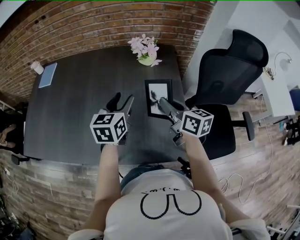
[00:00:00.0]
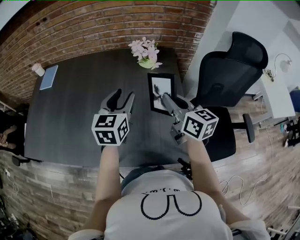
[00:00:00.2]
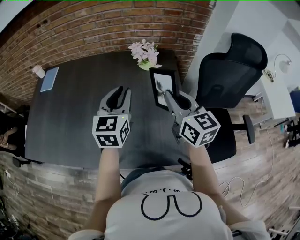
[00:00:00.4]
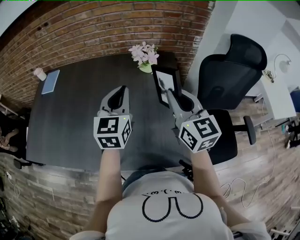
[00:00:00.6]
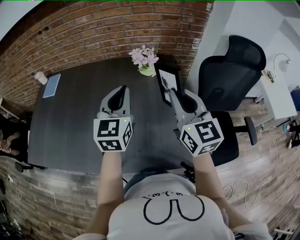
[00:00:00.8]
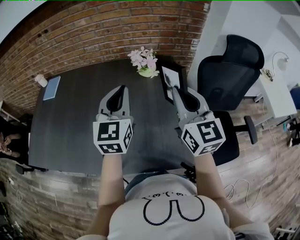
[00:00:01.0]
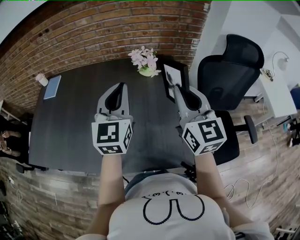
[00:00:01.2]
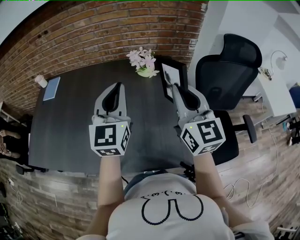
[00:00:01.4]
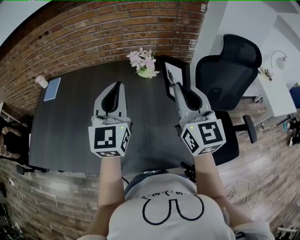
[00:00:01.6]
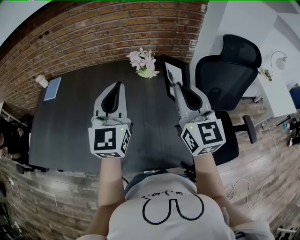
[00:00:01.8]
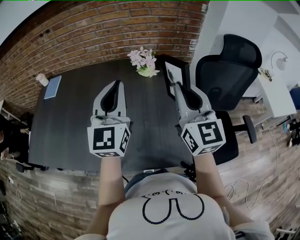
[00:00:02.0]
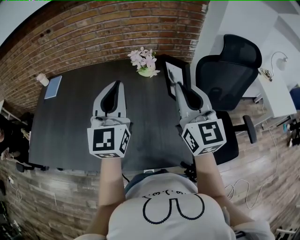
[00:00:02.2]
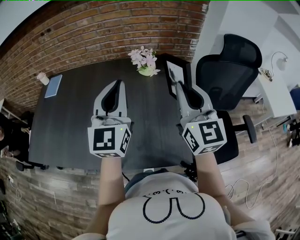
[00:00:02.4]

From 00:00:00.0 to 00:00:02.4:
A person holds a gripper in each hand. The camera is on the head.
From 00:00:00.0 to 00:00:01.2: The grippers both shift upward by roughly 15 cm. The left gripper swivels some 30 degrees, and closes up. The right gripper rotates some 40 degrees.
From 00:00:01.2 to 00:00:02.4: The left gripper changes place by roughly 5 cm.

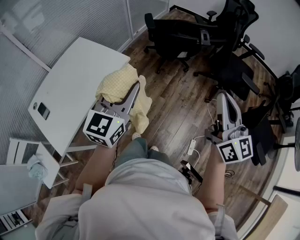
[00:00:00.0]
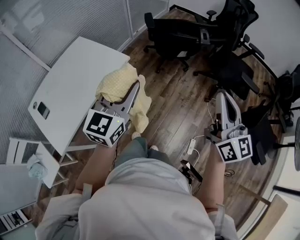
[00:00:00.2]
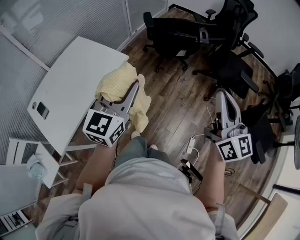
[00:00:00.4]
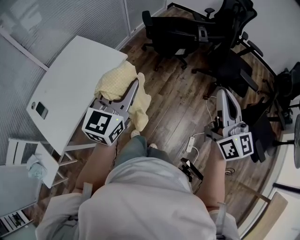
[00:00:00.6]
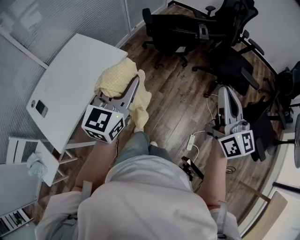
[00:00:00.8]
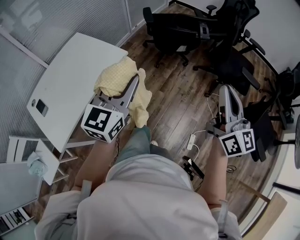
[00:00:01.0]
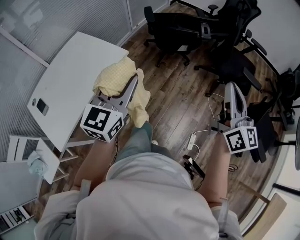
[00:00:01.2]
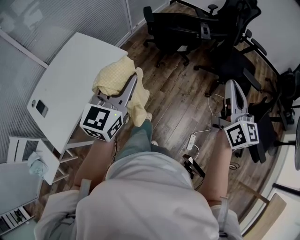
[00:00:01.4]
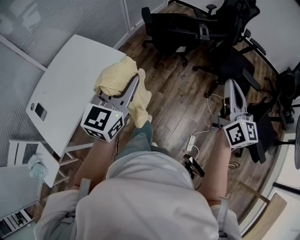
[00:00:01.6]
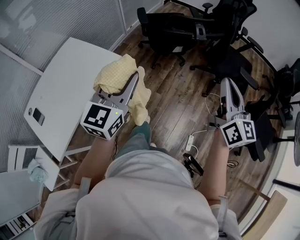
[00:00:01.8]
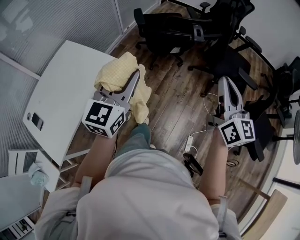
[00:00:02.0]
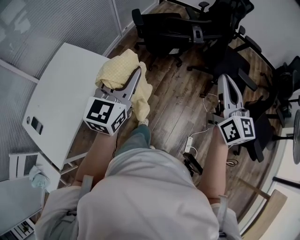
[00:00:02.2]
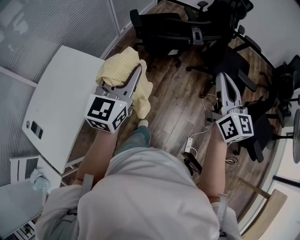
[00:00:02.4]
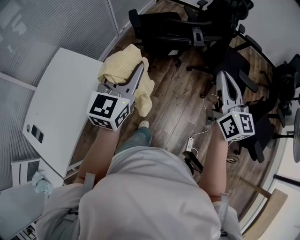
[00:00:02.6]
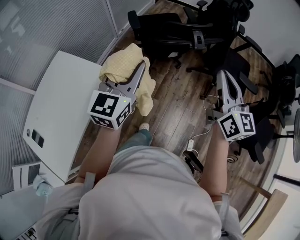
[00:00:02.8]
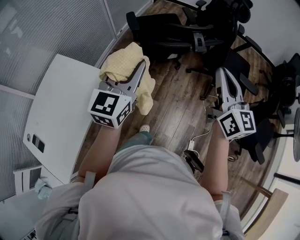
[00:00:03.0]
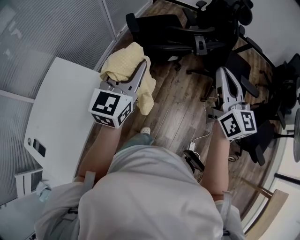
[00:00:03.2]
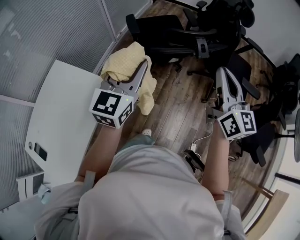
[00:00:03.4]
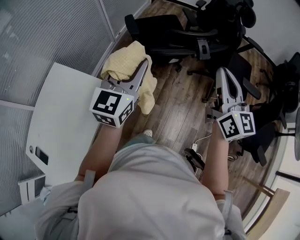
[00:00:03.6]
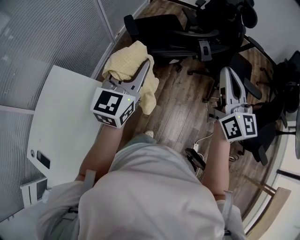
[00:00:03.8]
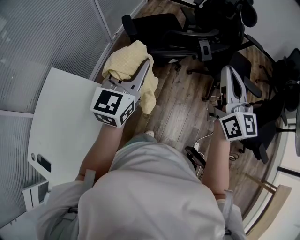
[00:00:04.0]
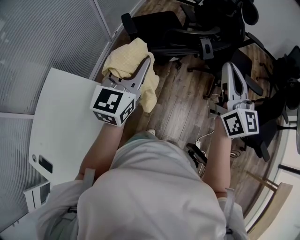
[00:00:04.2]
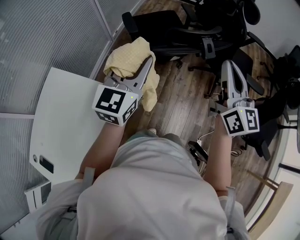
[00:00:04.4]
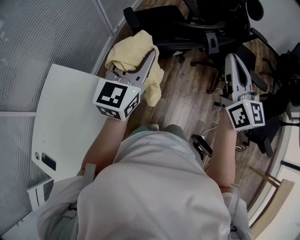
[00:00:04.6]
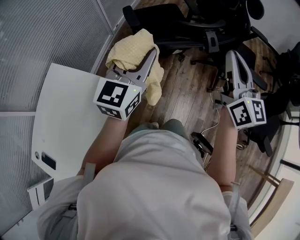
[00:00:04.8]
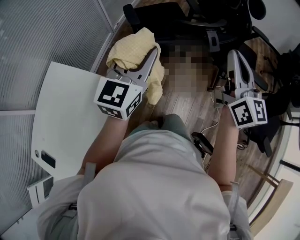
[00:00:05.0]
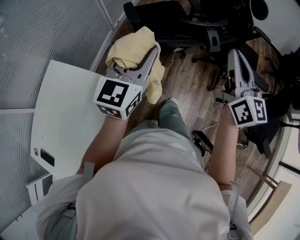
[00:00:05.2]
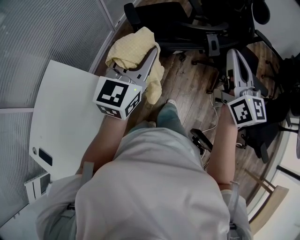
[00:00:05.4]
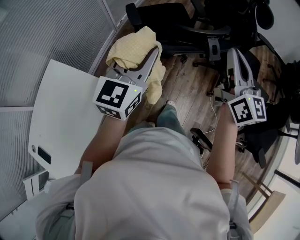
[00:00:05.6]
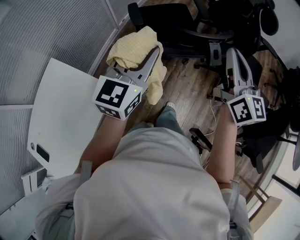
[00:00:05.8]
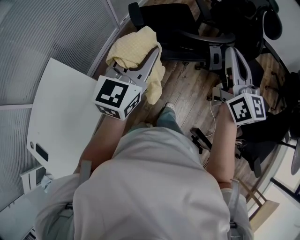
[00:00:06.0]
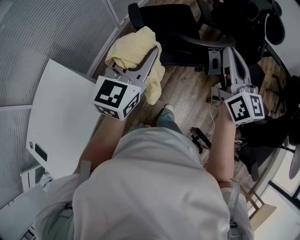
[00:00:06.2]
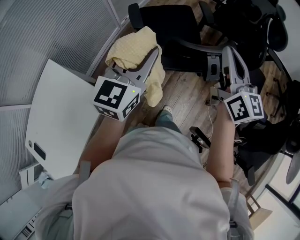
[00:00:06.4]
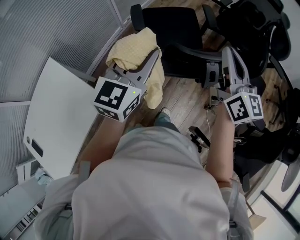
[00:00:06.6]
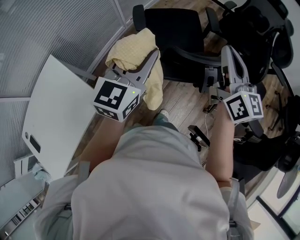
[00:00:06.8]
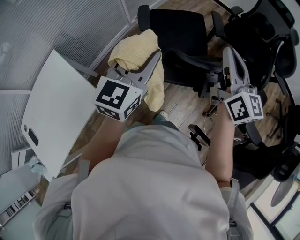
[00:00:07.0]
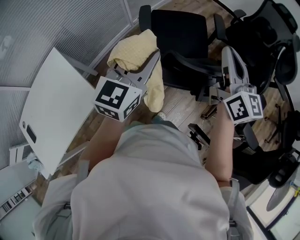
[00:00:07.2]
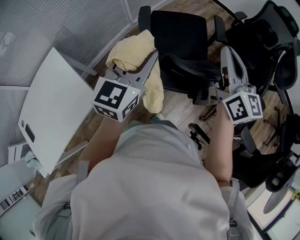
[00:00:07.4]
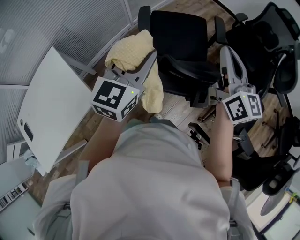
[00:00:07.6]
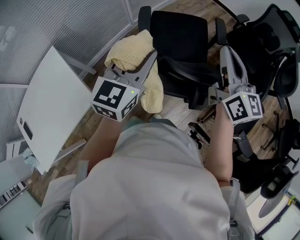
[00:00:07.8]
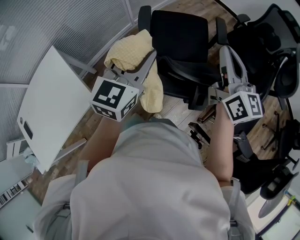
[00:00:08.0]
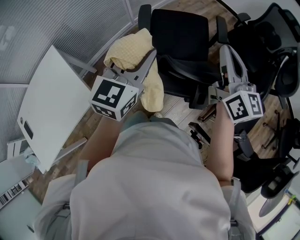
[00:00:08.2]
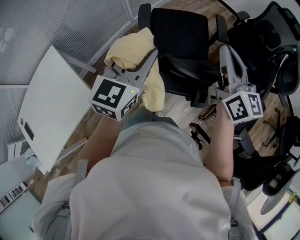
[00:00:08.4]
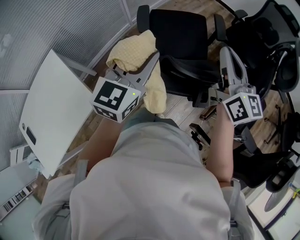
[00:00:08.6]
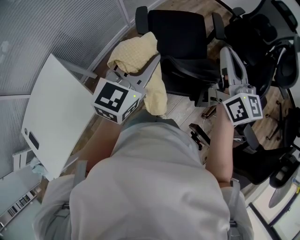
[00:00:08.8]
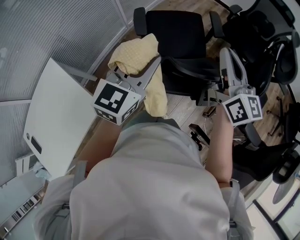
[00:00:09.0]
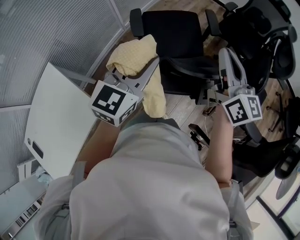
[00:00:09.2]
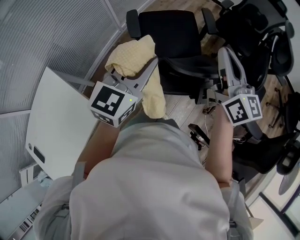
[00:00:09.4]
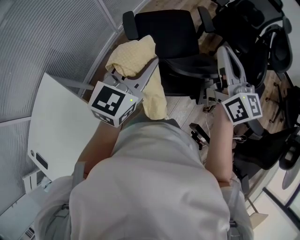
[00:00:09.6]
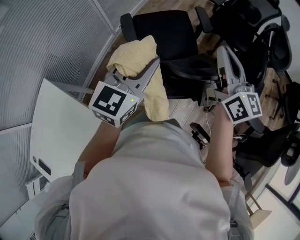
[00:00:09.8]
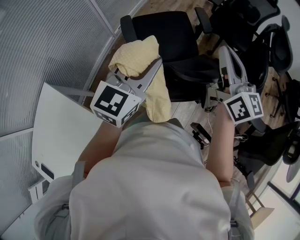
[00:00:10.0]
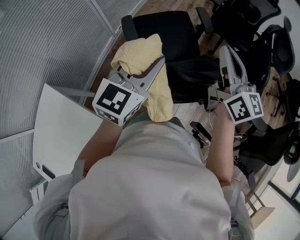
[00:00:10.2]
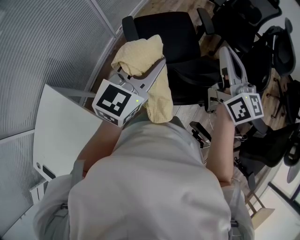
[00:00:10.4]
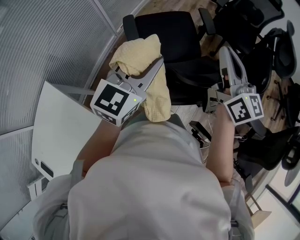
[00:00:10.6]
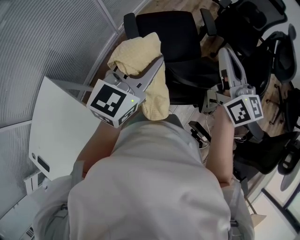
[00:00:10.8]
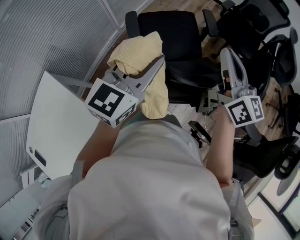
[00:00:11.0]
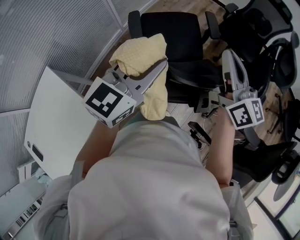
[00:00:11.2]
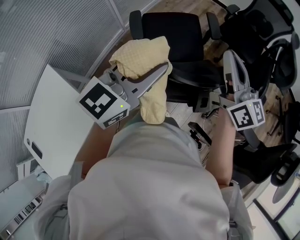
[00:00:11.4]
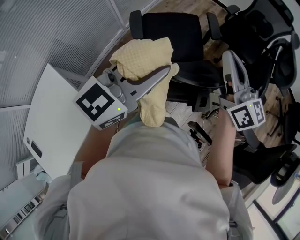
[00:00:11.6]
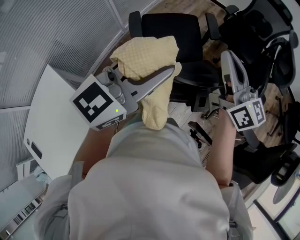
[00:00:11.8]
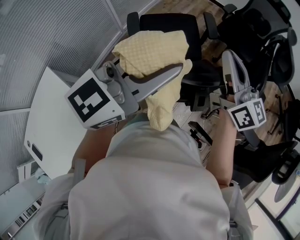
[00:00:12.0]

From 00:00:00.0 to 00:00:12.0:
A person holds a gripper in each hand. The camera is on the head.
From 00:00:00.0 to 00:00:01.6: The right gripper moves forward and to the right, roughly 10 cm.
From 00:00:01.6 to 00:00:03.0: Both grippers move forward, some 20 cm.
From 00:00:03.0 to 00:00:04.4: The right gripper is displaced forward and to the left by approximately 10 cm. Meanwhile the left gripper travels forward by approximately 10 cm.
From 00:00:04.4 to 00:00:06.0: The grippers both shift forward by approximately 10 cm.
From 00:00:06.0 to 00:00:07.6: The grippers both shift forward by some 15 cm.
From 00:00:07.6 to 00:00:09.0: The grippers make only small movements.
From 00:00:09.0 to 00:00:10.4: The grippers stay close to where they were, moving slightly.
From 00:00:10.4 to 00:00:12.0: The left gripper heads upward and to the right, covering roughly 15 cm.

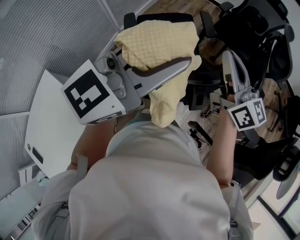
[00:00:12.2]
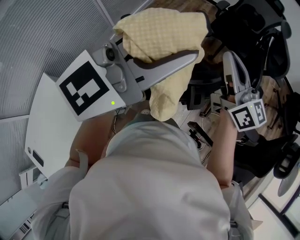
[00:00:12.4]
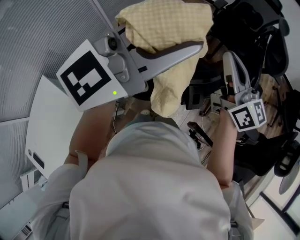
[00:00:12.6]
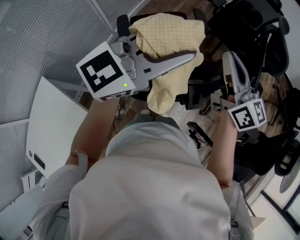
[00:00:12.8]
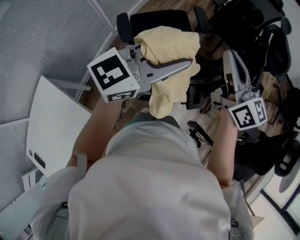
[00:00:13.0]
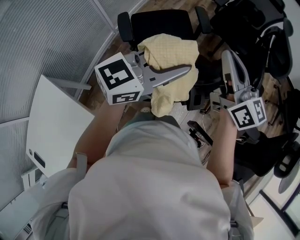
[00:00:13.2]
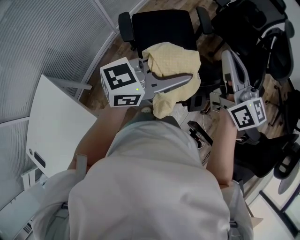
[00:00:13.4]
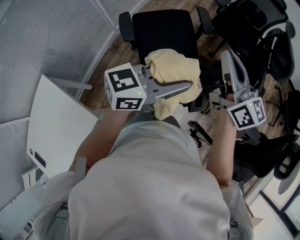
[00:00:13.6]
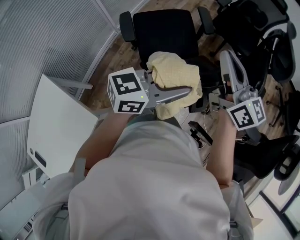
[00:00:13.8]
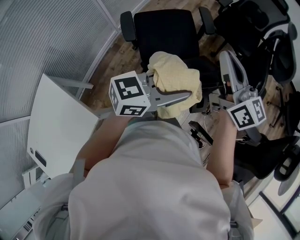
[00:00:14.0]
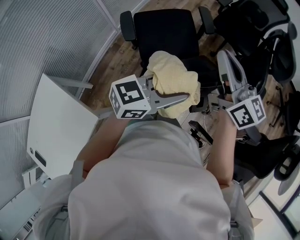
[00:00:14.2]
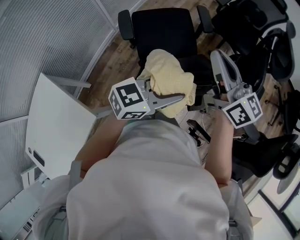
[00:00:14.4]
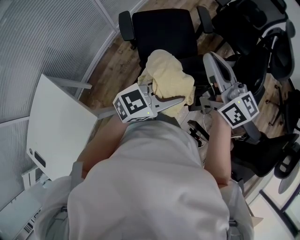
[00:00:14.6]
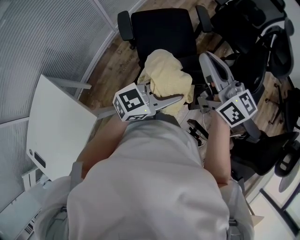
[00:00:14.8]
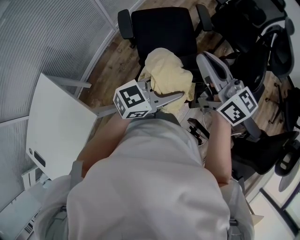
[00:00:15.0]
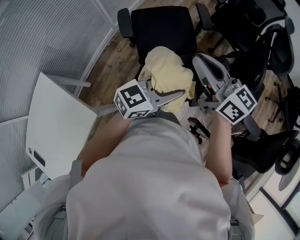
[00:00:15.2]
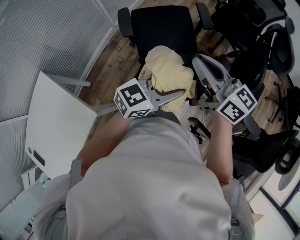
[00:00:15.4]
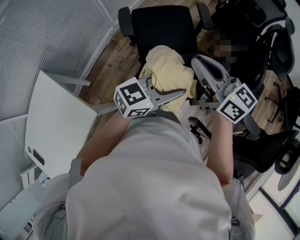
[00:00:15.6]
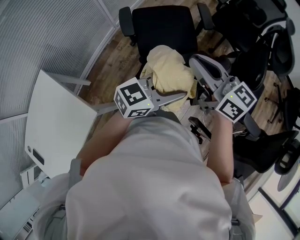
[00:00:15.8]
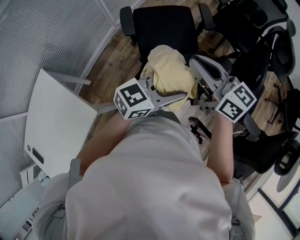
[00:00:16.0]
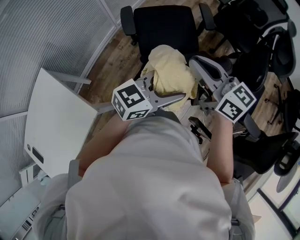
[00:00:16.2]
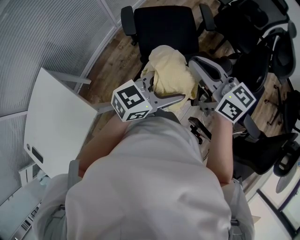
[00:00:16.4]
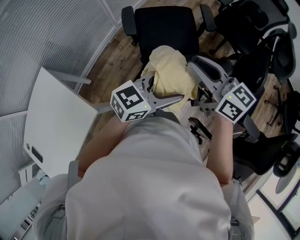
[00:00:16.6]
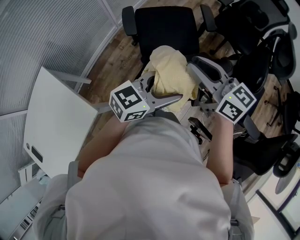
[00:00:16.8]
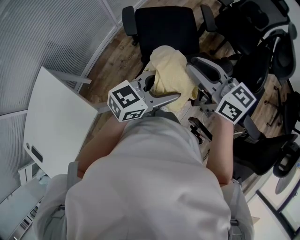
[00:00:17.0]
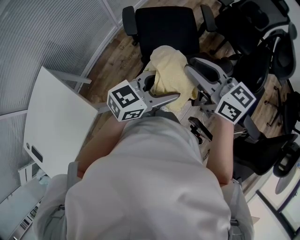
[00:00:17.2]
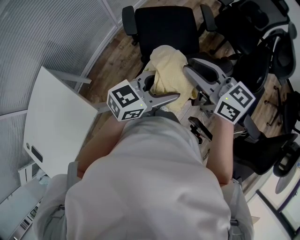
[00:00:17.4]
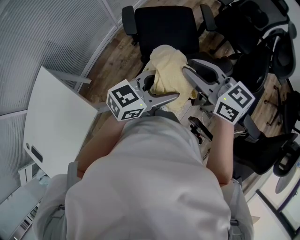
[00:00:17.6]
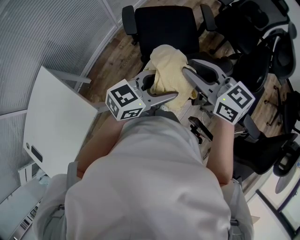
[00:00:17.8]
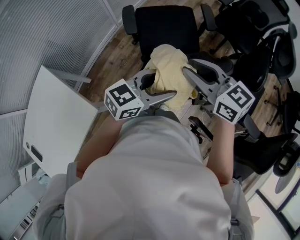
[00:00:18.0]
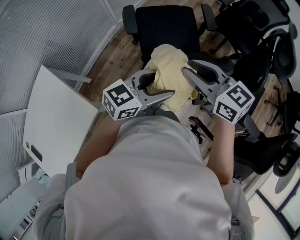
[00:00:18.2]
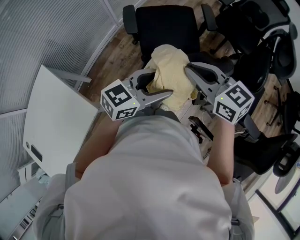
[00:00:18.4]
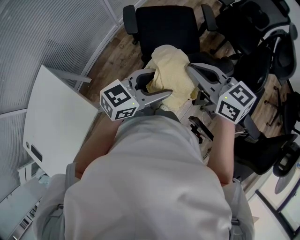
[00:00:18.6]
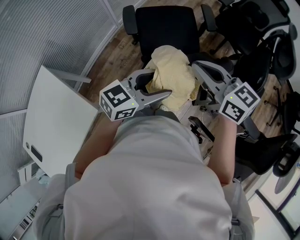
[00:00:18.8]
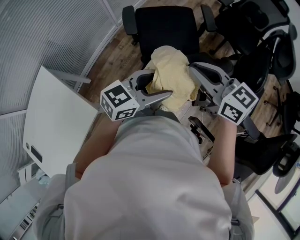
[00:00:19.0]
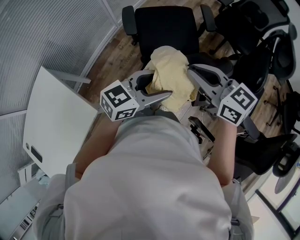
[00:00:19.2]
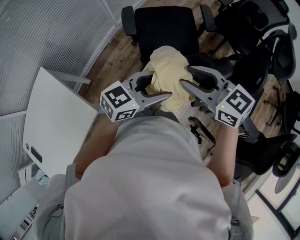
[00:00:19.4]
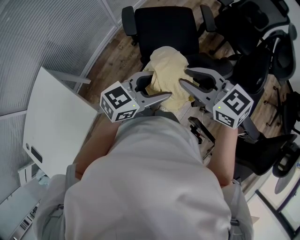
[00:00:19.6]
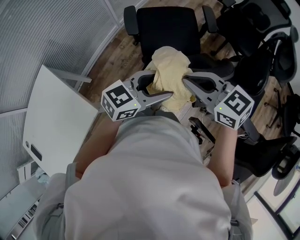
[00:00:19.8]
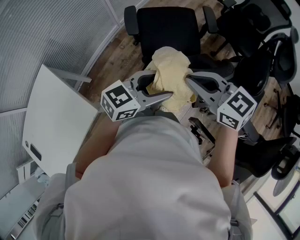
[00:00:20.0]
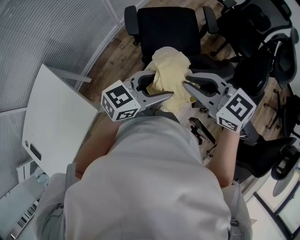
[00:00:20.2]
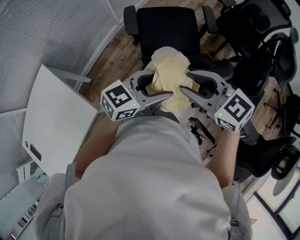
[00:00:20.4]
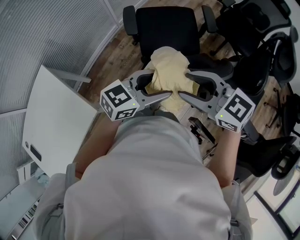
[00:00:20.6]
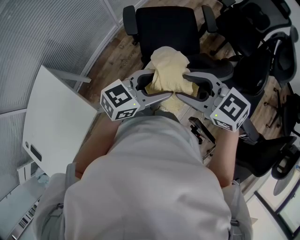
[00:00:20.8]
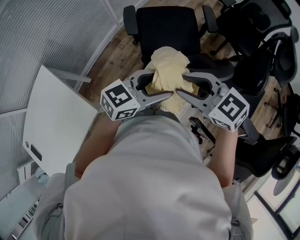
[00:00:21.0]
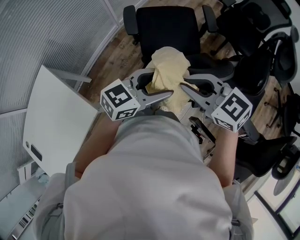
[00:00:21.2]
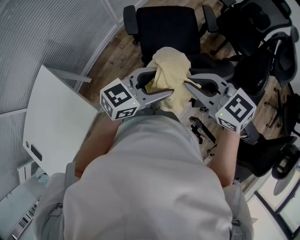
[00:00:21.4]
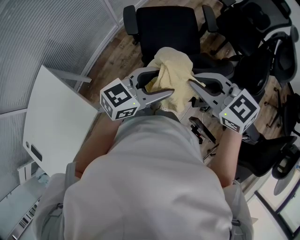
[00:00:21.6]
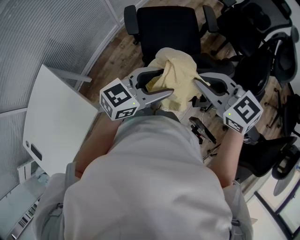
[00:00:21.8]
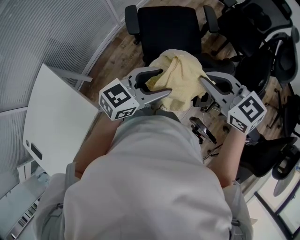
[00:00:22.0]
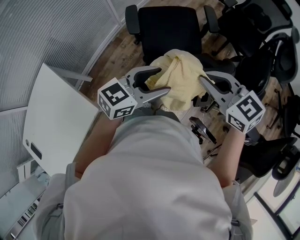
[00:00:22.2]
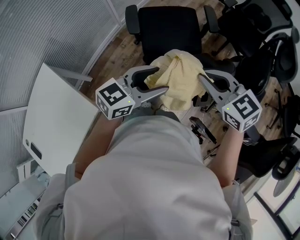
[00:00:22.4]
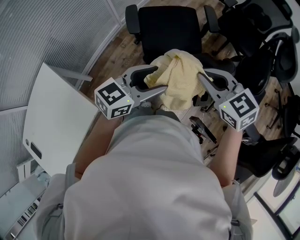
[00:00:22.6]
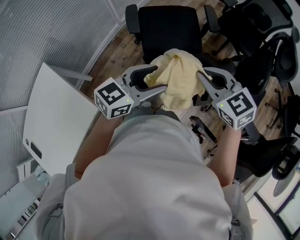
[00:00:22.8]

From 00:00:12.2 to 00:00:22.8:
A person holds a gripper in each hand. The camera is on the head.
From 00:00:12.2 to 00:00:13.8: The left gripper travels downward by about 15 cm, and changes its angle by roughly 30 degrees.
From 00:00:13.8 to 00:00:15.2: The left gripper is displaced downward by roughly 5 cm. The right gripper is displaced backward by approximately 5 cm.
From 00:00:15.2 to 00:00:16.8: The left gripper opens up.
From 00:00:16.8 to 00:00:18.2: The grippers stay close to where they were, moving slightly.
From 00:00:18.2 to 00:00:19.8: The right gripper closes its fingers.
From 00:00:19.8 to 00:00:21.2: The right gripper opens, then closes again.
From 00:00:21.2 to 00:00:22.8: The right gripper moves about 5 cm.
